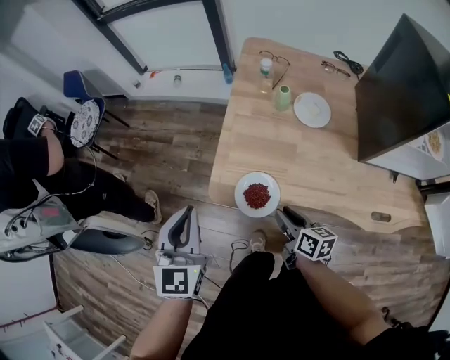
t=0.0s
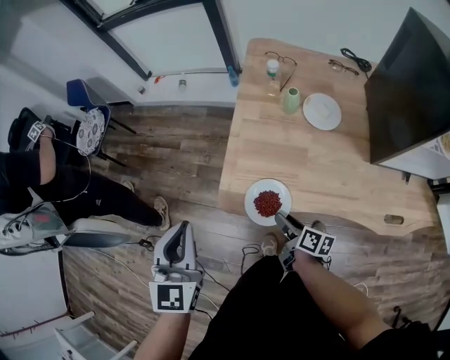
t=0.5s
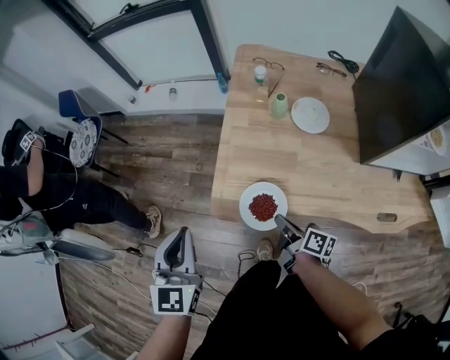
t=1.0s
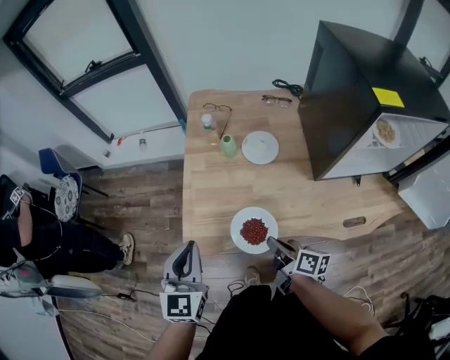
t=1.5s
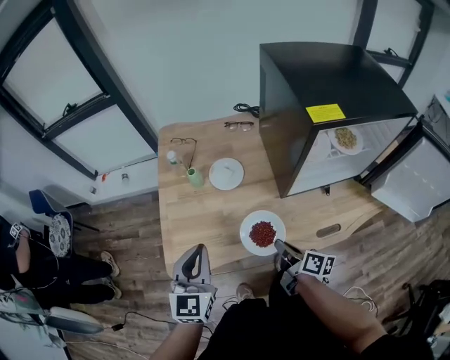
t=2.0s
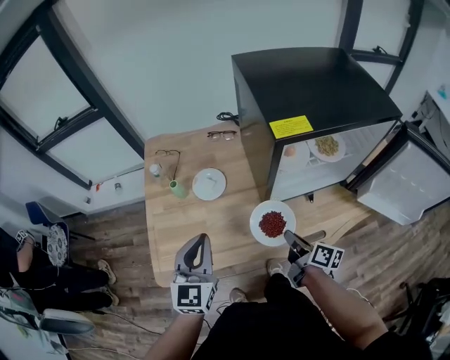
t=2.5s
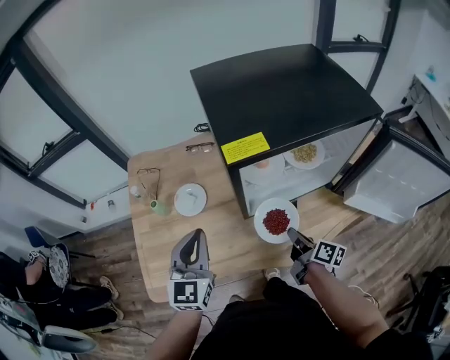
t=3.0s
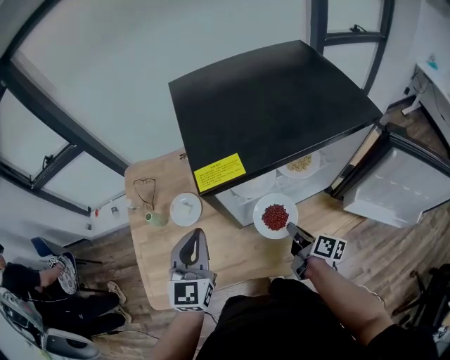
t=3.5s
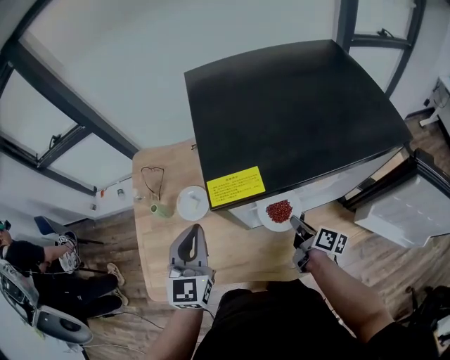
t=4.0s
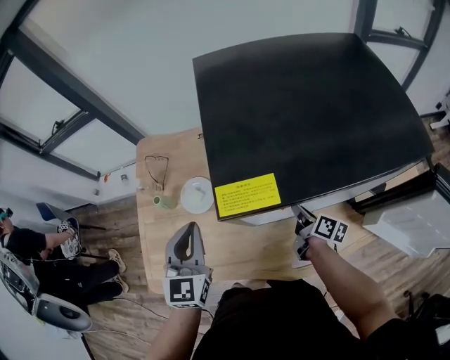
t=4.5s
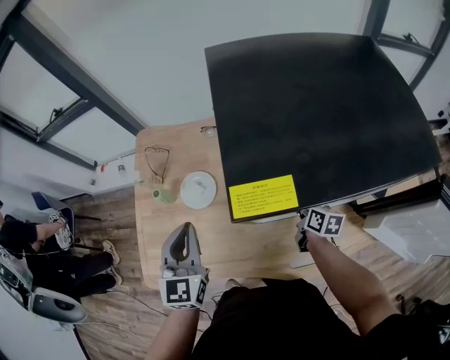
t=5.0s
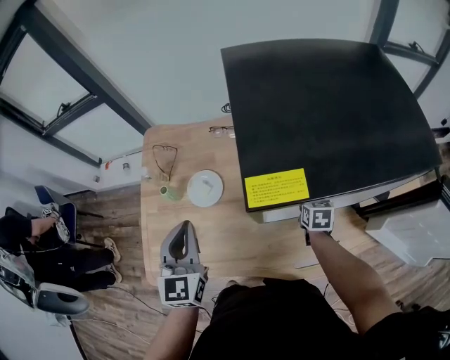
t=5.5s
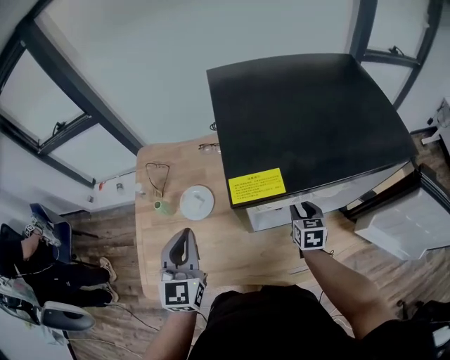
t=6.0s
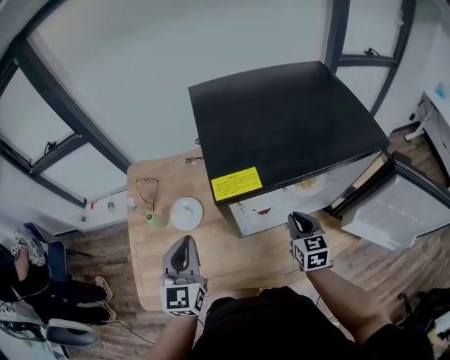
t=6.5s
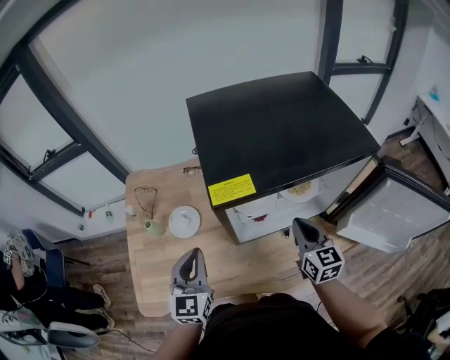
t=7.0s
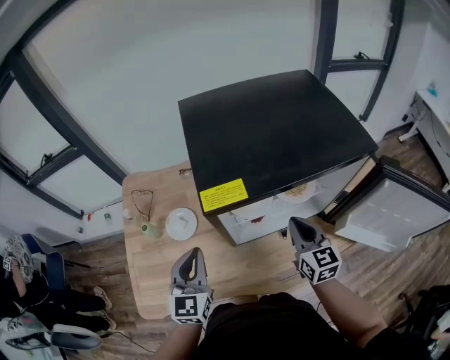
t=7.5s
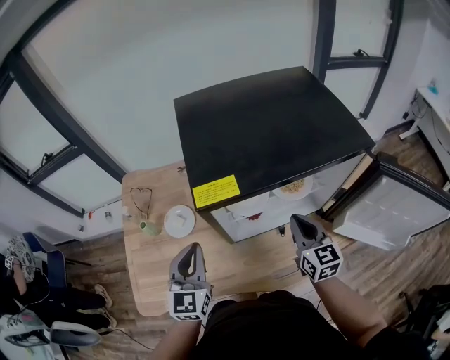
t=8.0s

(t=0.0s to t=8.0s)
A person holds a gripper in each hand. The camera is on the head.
t=0.0s - t=2.0s: The two grippers go about 20 cm to the right. The left gripper turns by approximately 20 degrees; the right gripper rotates about 30 degrees, and closes up.
t=2.0s - t=4.0s: The grippers both shift to the right and forward by roughly 25 cm.
t=4.0s - t=6.0s: The right gripper heads forward, covering some 5 cm, rolls counterclockwise, seen from behind, by about 50 degrees, and opens up.
t=6.0s - t=8.0s: The left gripper travels to the right by approximately 10 cm. Meanwhile the right gripper travels upward and backward by approximately 15 cm, changes its angle by about 20 degrees, and closes up.

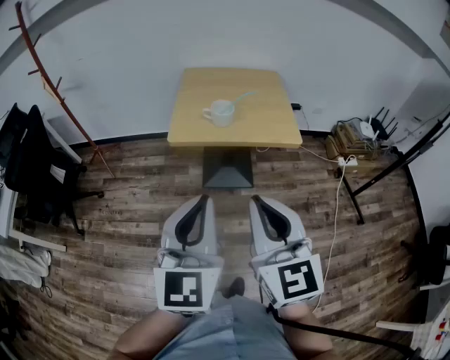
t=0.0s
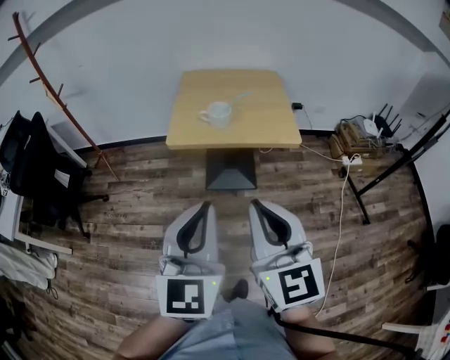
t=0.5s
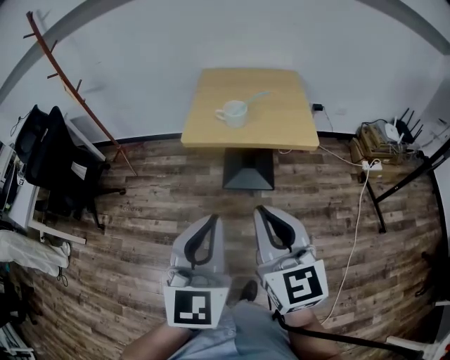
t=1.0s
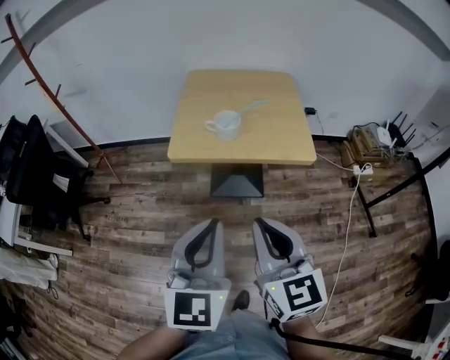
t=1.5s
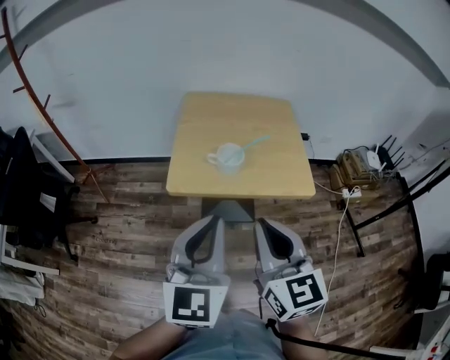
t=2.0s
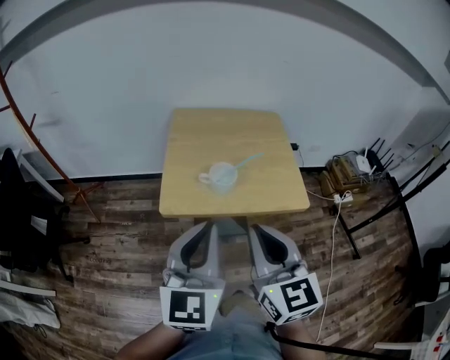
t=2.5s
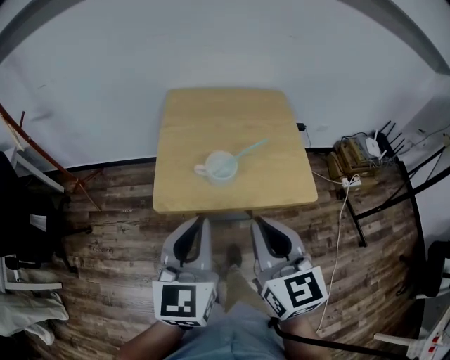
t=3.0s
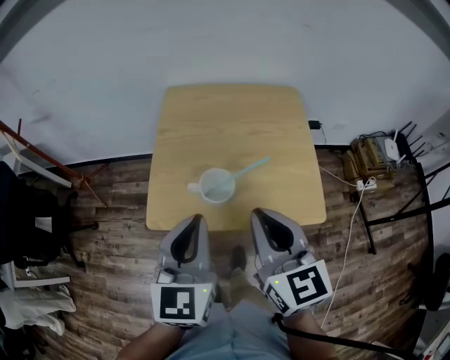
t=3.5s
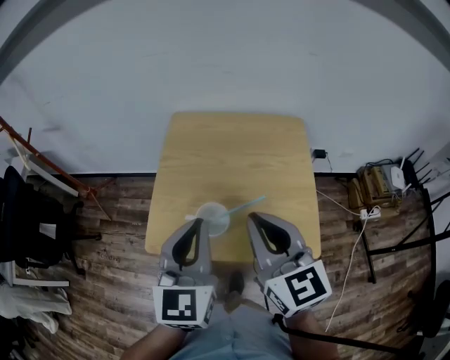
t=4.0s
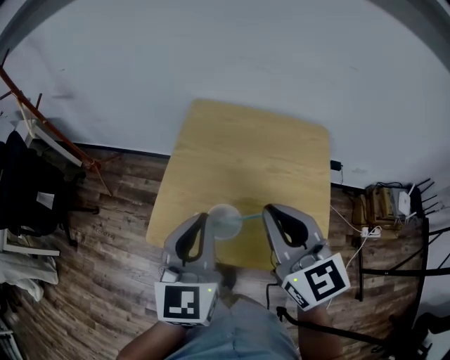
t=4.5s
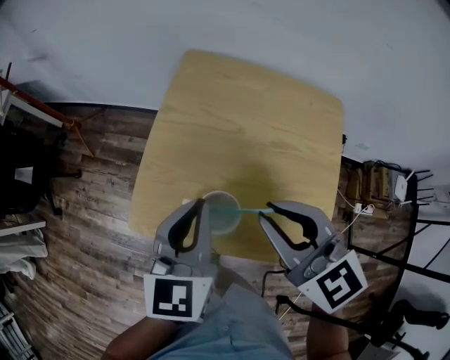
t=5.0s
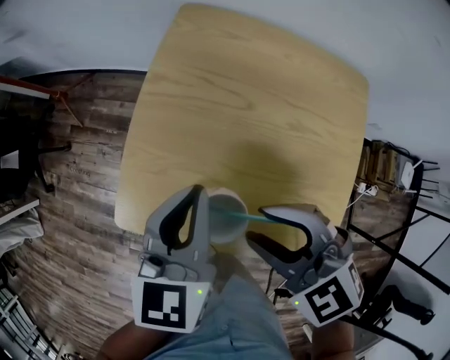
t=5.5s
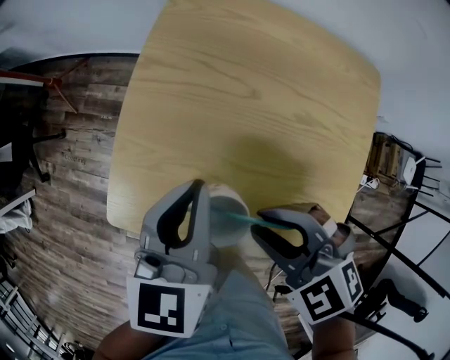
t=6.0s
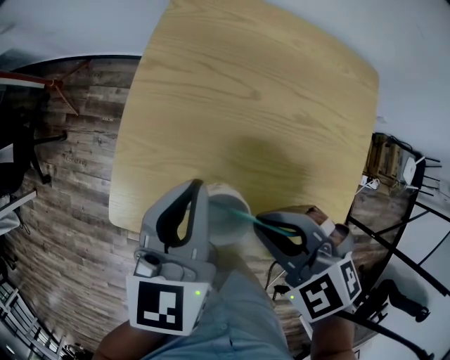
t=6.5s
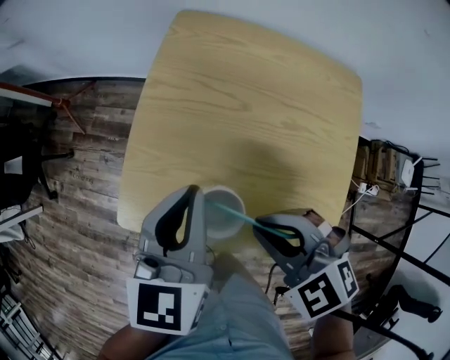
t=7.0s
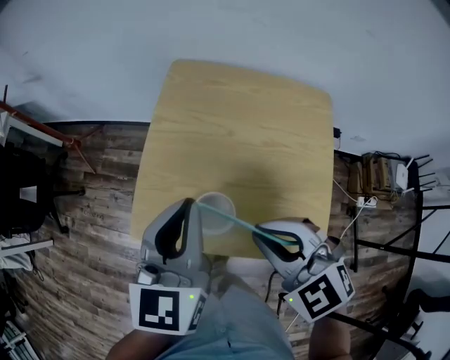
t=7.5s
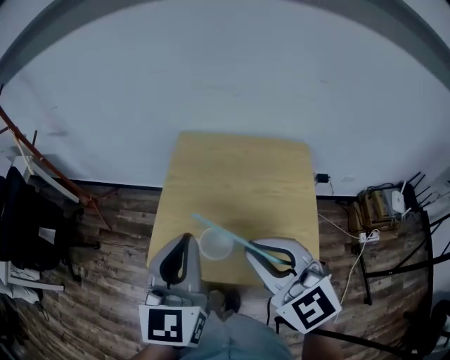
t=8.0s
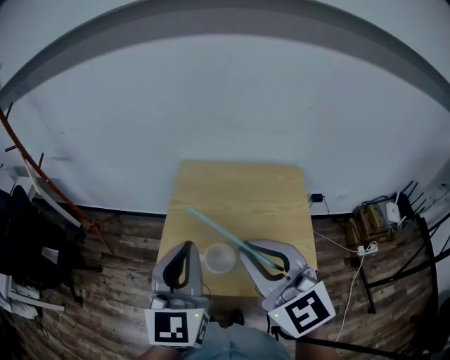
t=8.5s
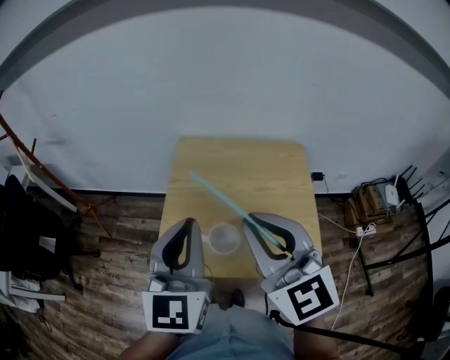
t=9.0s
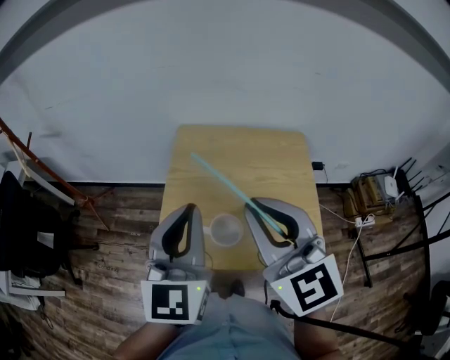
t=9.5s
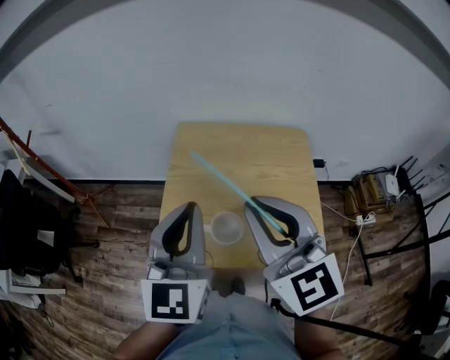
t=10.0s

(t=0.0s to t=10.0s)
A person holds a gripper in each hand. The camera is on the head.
t=0.0s - t=2.0s: The grippers both shift forward by approximately 20 cm.
t=2.0s - t=4.0s: Both grippers move forward, approximately 25 cm.
t=4.0s - t=6.0s: The right gripper travels downward by roughly 20 cm, angles its fingers downward, by some 40 degrees, and opens. The left gripper goes about 20 cm downward and forward, and turns by some 30 degrees.
t=6.0s - t=8.0s: The right gripper travels upward by about 20 cm, and angles its fingers upward, by roughly 30 degrees; the left gripper is displaced upward and backward by some 20 cm, and rotates some 30 degrees.
t=8.0s - t=10.0s: The right gripper goes some 5 cm upward.

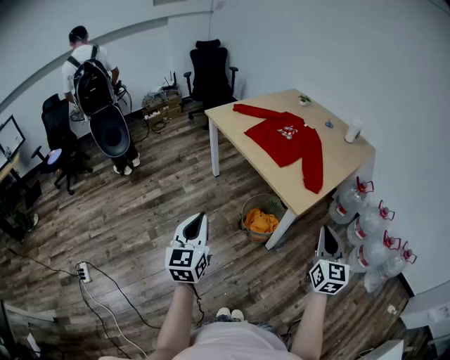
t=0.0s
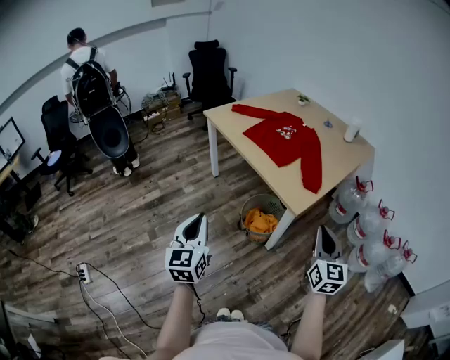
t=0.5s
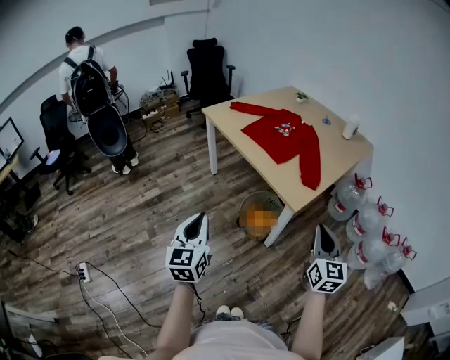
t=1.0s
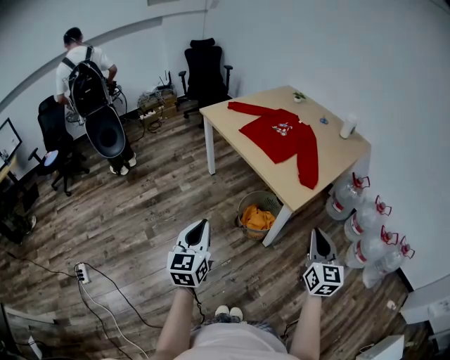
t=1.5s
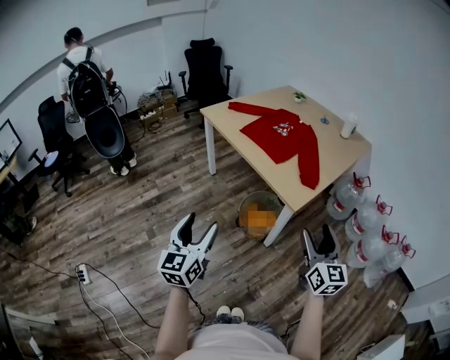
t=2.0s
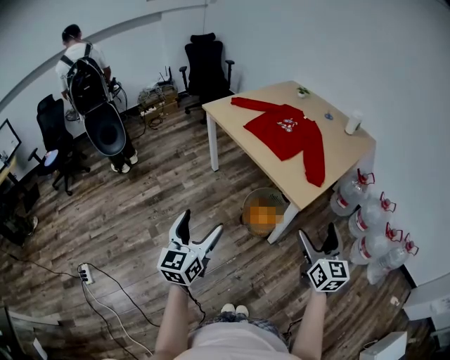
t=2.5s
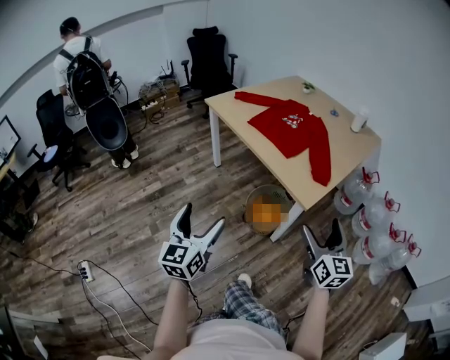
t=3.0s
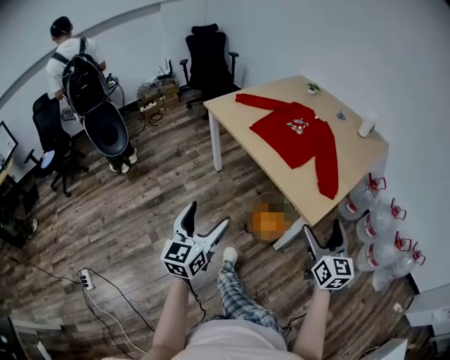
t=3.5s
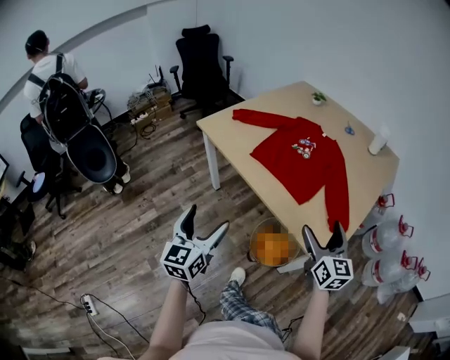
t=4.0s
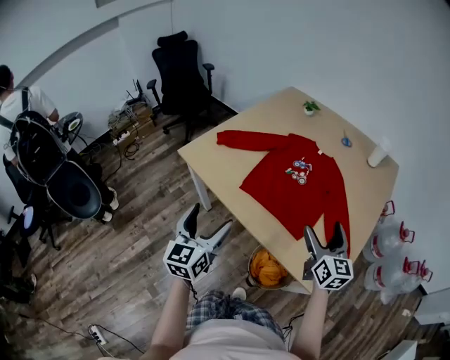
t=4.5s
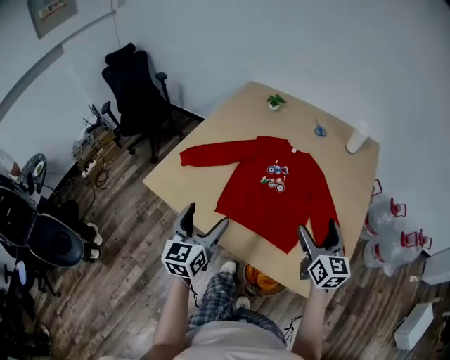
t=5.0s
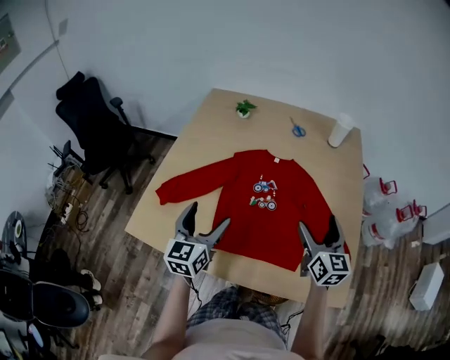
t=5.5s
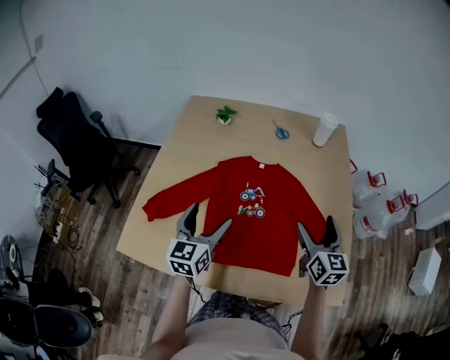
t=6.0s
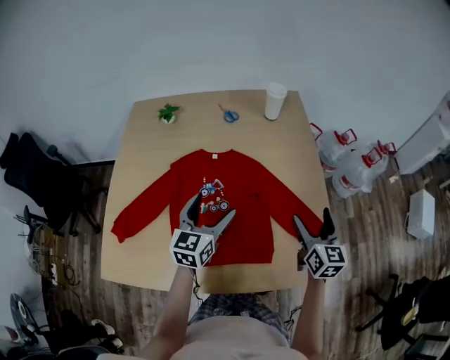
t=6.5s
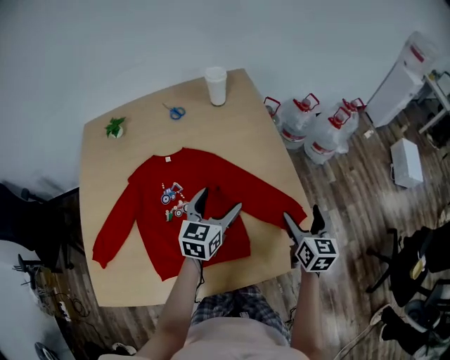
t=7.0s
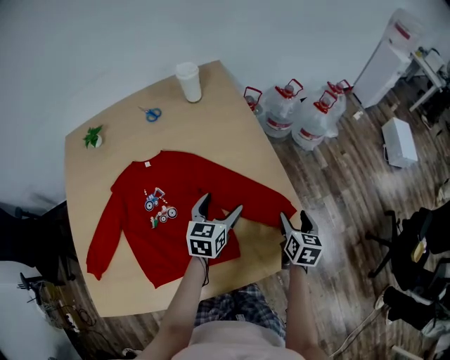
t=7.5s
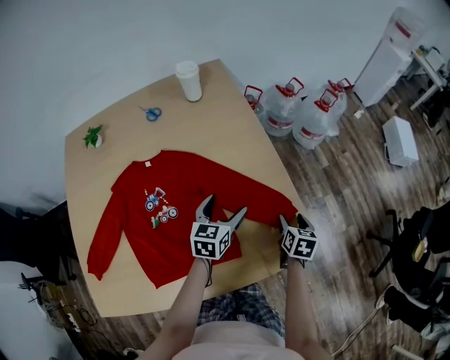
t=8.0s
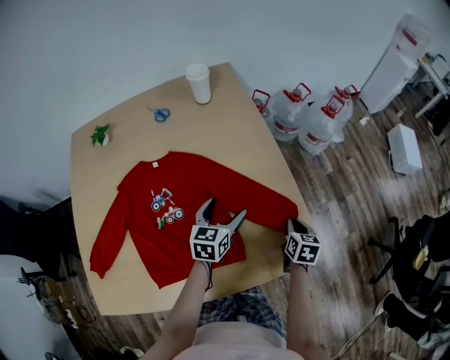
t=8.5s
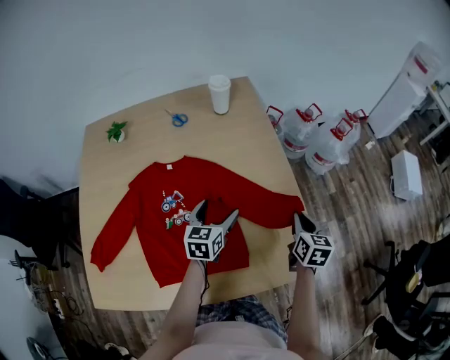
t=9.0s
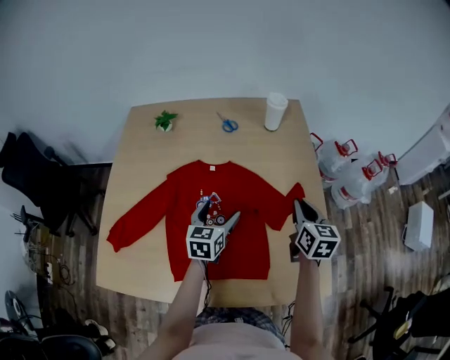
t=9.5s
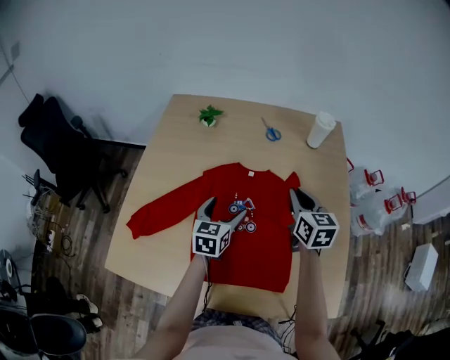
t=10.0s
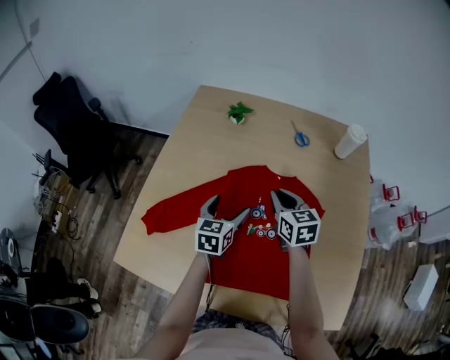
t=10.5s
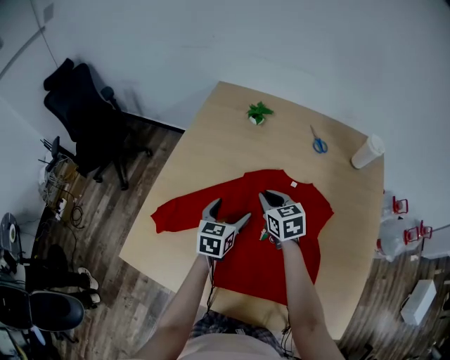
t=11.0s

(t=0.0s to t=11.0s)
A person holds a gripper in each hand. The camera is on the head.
t=0.0s - t=2.0s: The right gripper opens up; the left gripper opens.
t=2.0s - t=3.5s: Both grippers travel together forward, some 15 cm. The right gripper opens. The left gripper opens up.
t=3.5s - t=5.5s: Both grippers are carried some 60 cm. The right gripper changes its angle by about 40 degrees, while the left gripper swivels some 40 degrees.
t=5.5s - t=7.5s: The right gripper moves about 30 cm, and angles its fingers downward, by about 30 degrees, while the left gripper ends up some 40 cm from where it was, and swivels about 50 degrees.
t=7.5s - t=9.0s: The right gripper goes some 5 cm upward, and closes its fingers, while the left gripper moves to the left, roughly 5 cm.
t=9.0s - t=11.0s: The left gripper ends up about 35 cm from where it was, and turns by some 30 degrees; the right gripper reaches roughly 10 cm upward, then returns, and rotates approximately 60 degrees.
